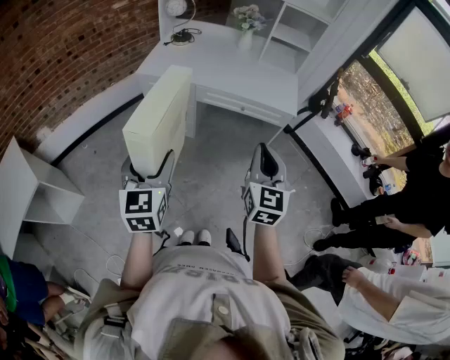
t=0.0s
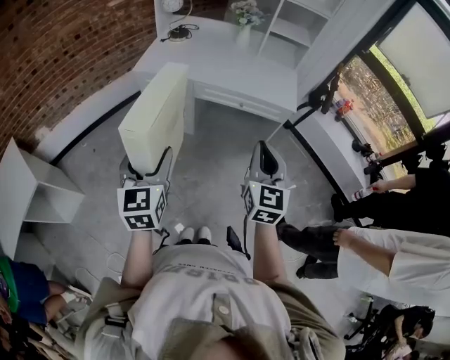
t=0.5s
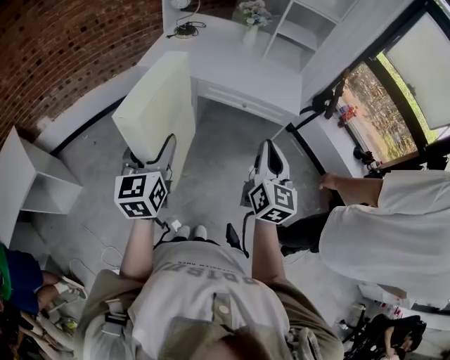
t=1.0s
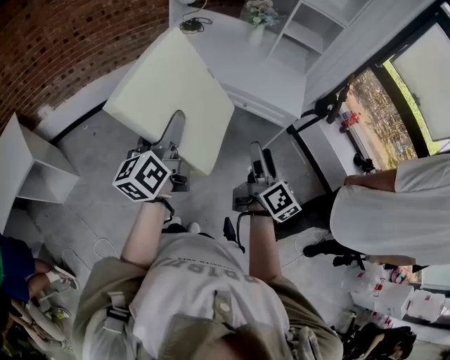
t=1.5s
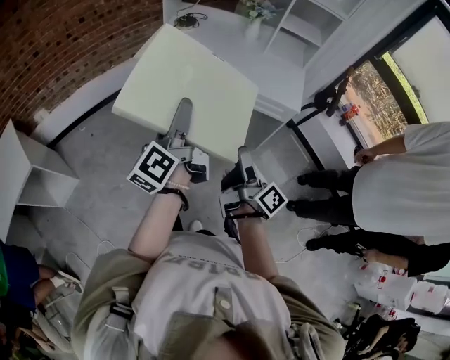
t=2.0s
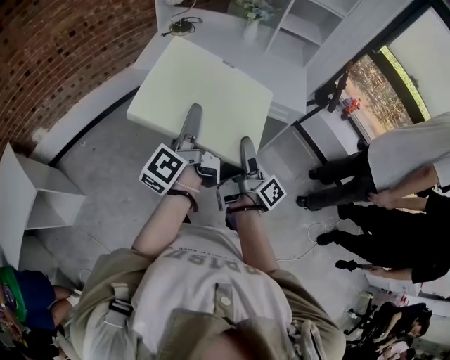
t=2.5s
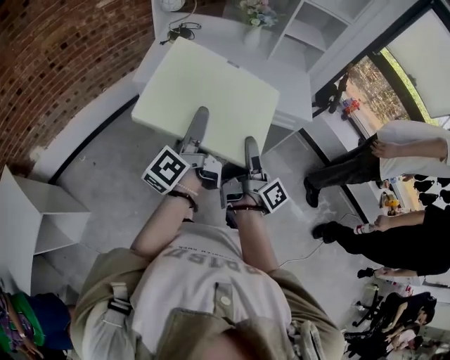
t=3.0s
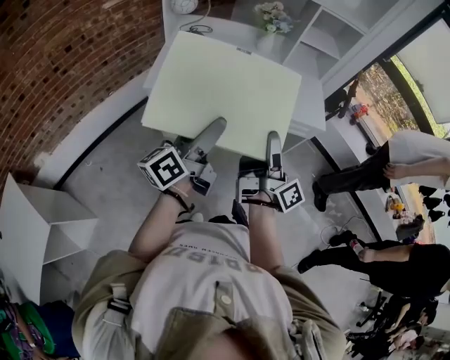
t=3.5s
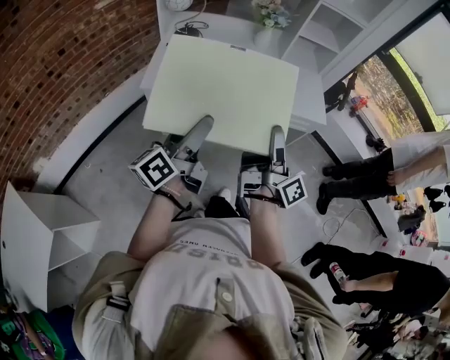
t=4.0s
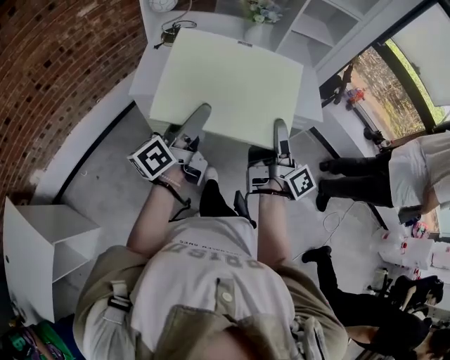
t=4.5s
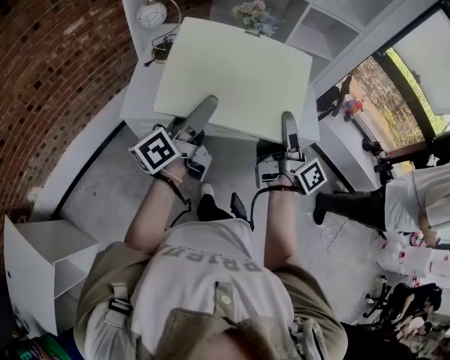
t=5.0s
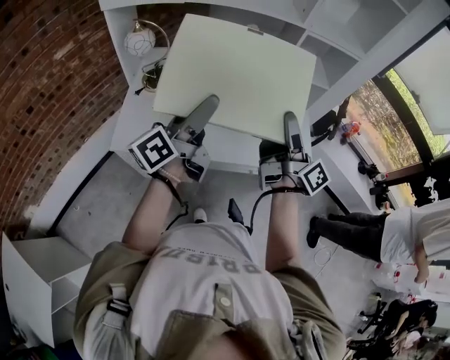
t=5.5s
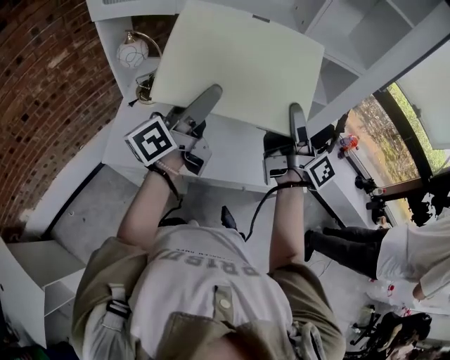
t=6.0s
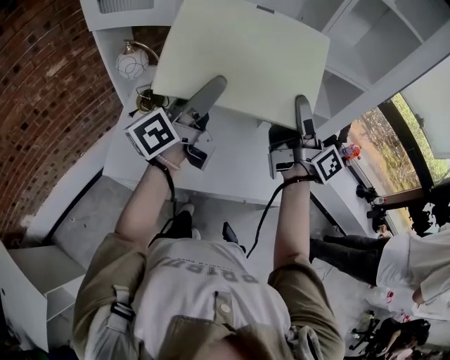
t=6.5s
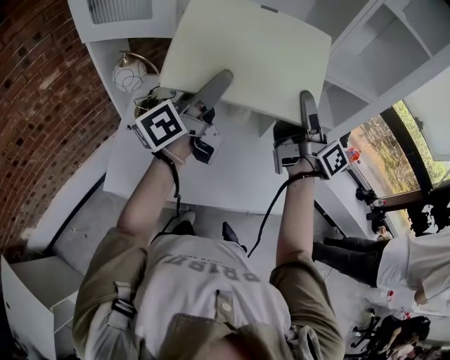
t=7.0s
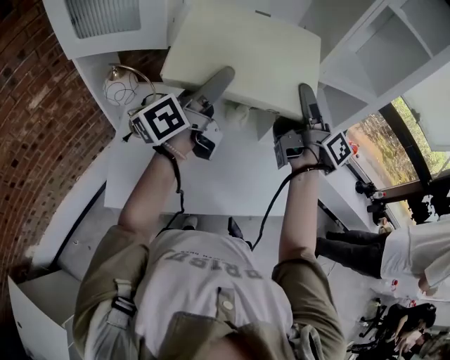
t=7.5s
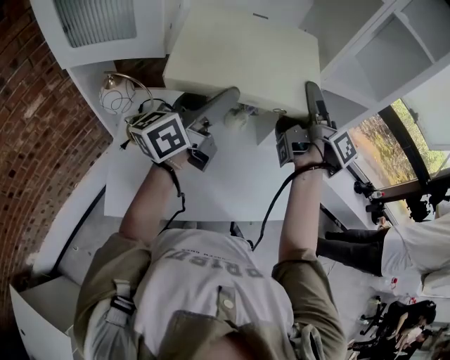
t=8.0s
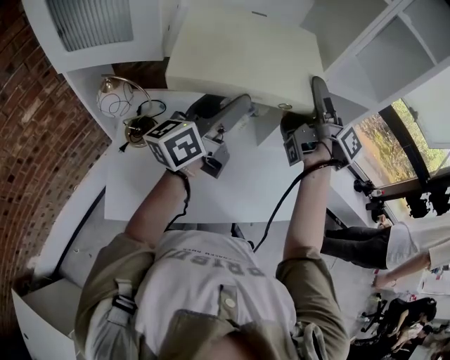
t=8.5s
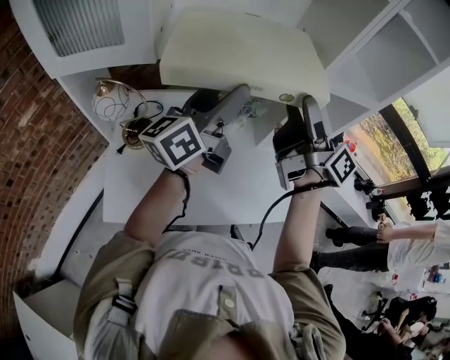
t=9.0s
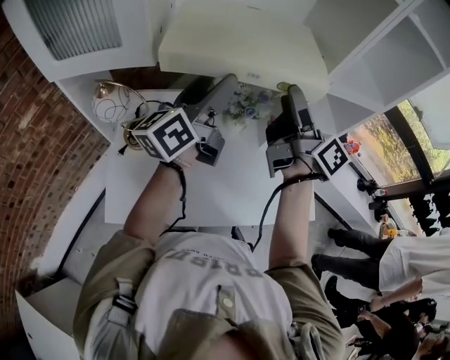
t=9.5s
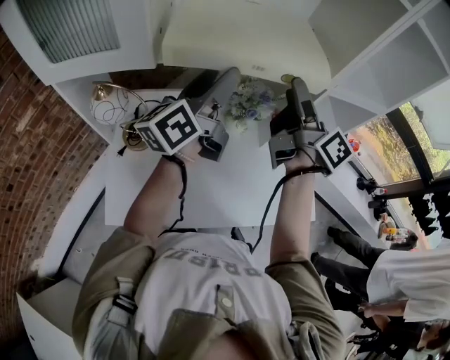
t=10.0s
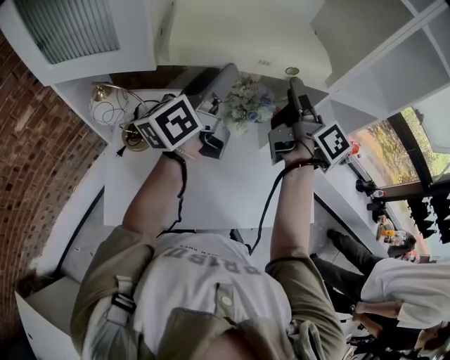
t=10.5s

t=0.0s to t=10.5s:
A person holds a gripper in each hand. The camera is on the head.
t=0.0s to t=2.0s: The left gripper goes approximately 10 cm forward and to the right, and twists roughly 60 degrees counterclockwise, seen from behind, while the right gripper goes approximately 10 cm downward, rotates around the line of its fingers by roughly 80 degrees, clockwise from behind, and opens.
t=2.0s to t=4.0s: The right gripper ends up approximately 25 cm from where it was, turns by roughly 30 degrees, and closes. The left gripper moves roughly 20 cm, and rotates some 30 degrees.
t=4.0s to t=6.5s: The two grippers travel together, forward, some 40 cm.
t=6.5s to t=8.5s: Both grippers travel together forward, approximately 15 cm.
t=8.5s to t=10.5s: The left gripper moves forward, roughly 10 cm, while the right gripper moves approximately 5 cm.

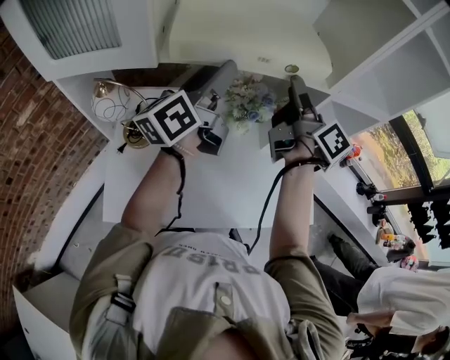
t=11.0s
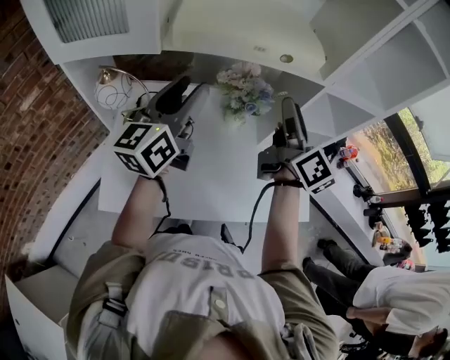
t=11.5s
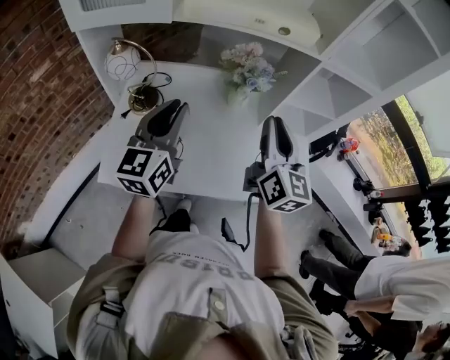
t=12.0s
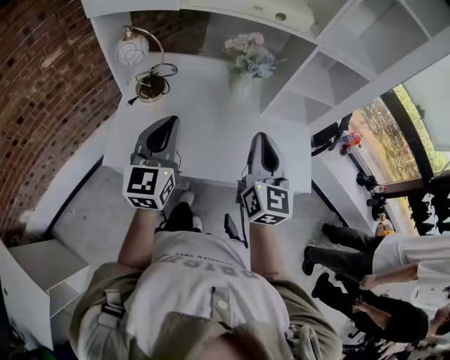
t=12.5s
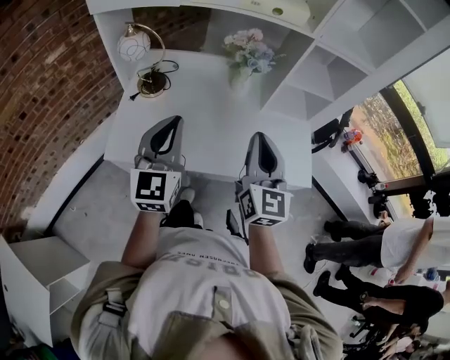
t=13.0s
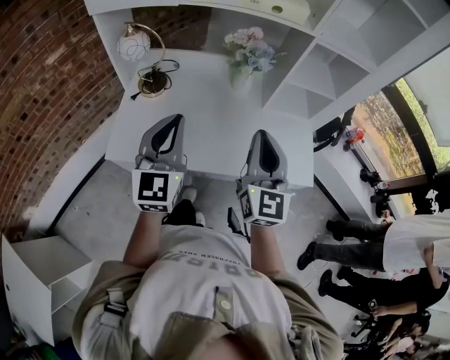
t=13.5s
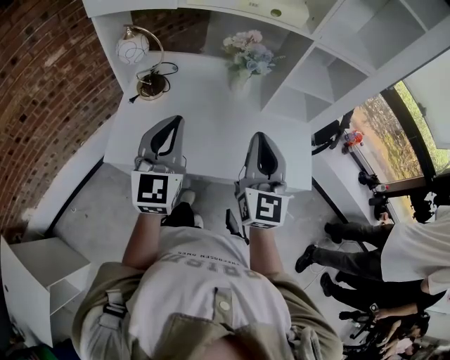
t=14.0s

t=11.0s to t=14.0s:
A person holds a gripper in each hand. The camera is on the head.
t=11.0s to t=12.5s: The grippers both shift backward by some 30 cm. The left gripper twists approximately 50 degrees clockwise, seen from behind, and closes. Meanwhile the right gripper rotates around the line of its fingers by some 60 degrees, counterclockwise from behind, and closes.
t=12.5s to t=14.0s: There are only small adjustments of the grippers.

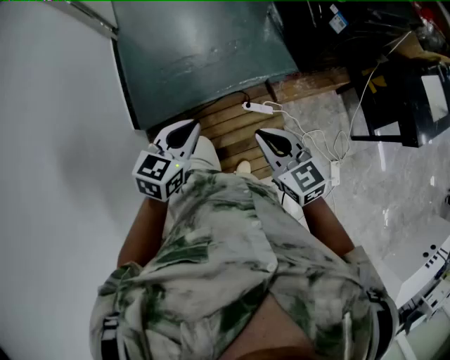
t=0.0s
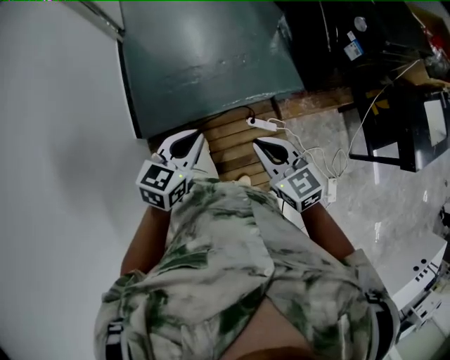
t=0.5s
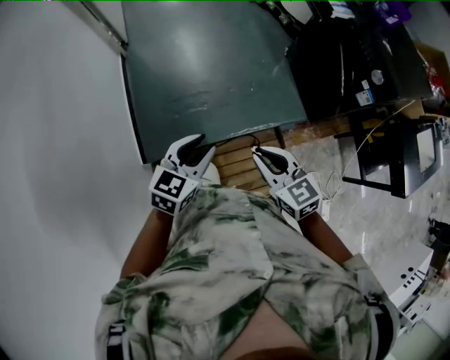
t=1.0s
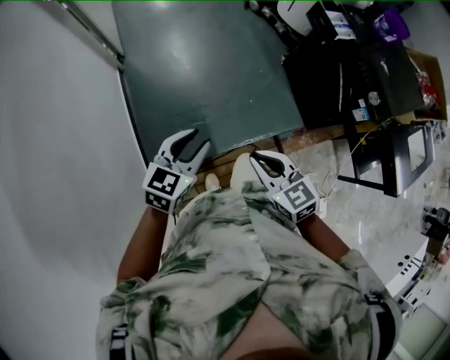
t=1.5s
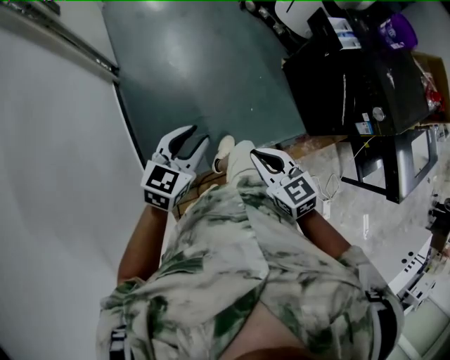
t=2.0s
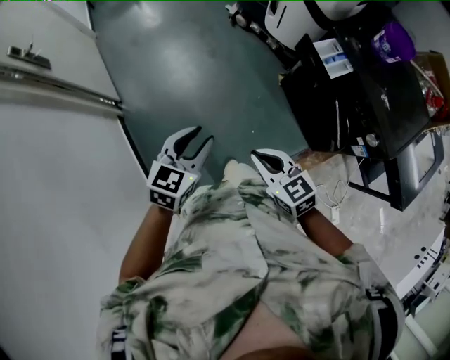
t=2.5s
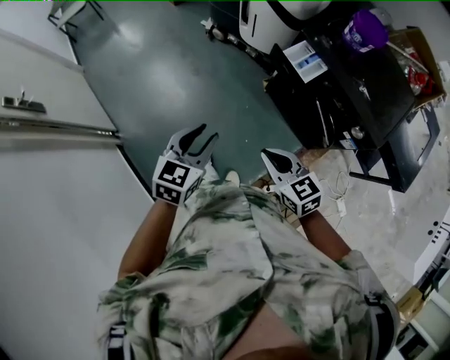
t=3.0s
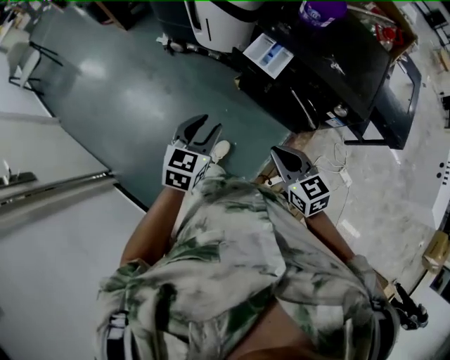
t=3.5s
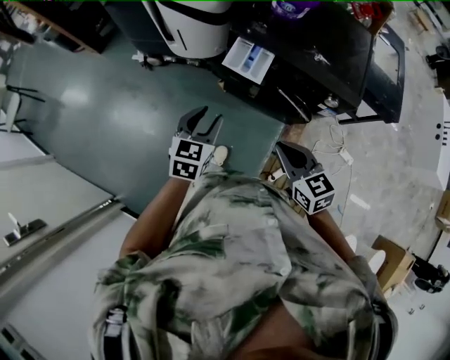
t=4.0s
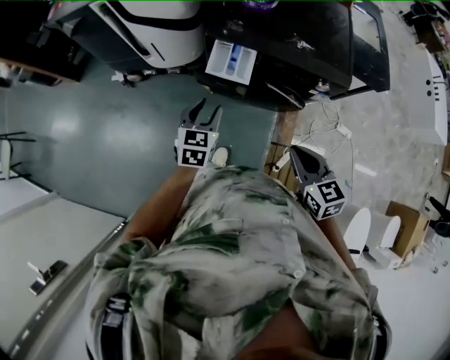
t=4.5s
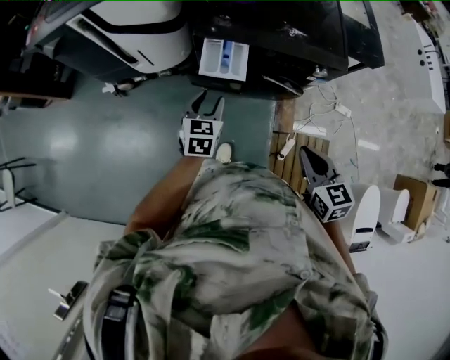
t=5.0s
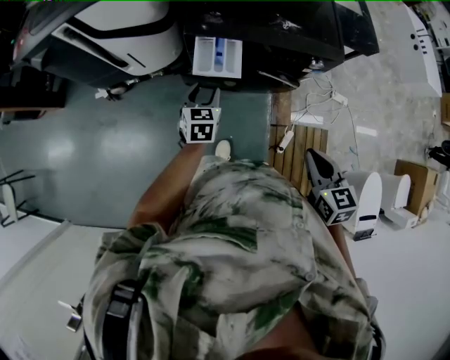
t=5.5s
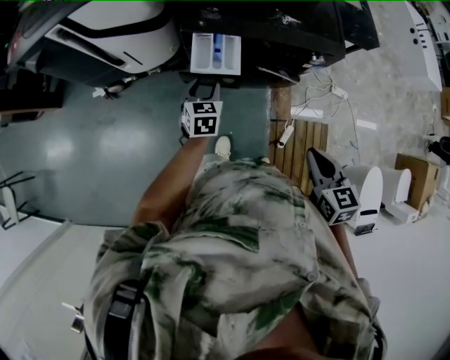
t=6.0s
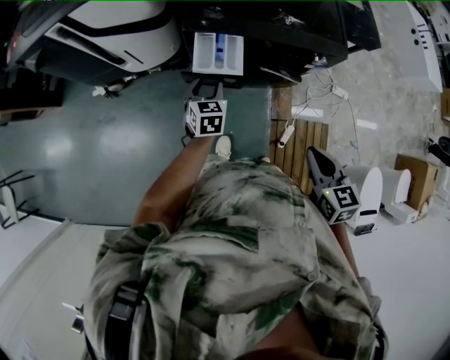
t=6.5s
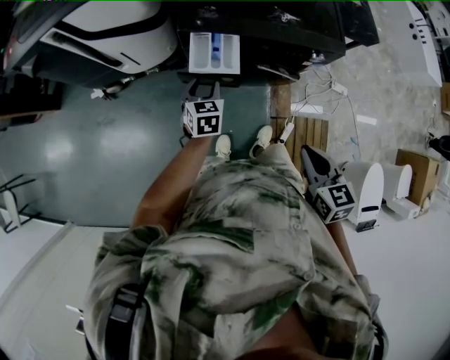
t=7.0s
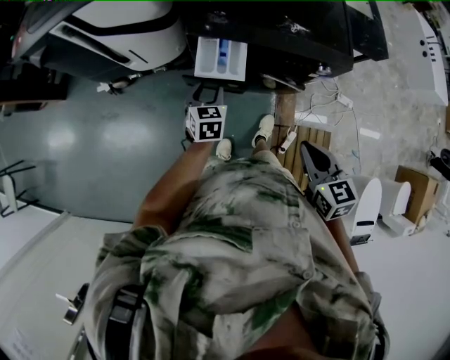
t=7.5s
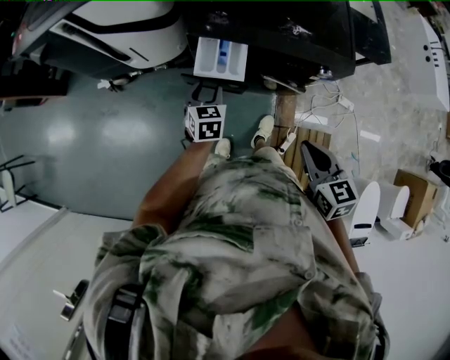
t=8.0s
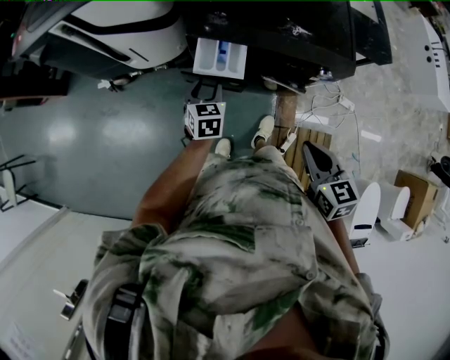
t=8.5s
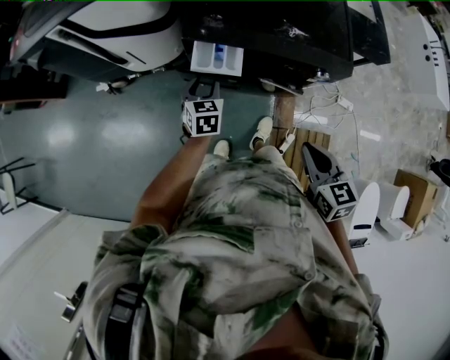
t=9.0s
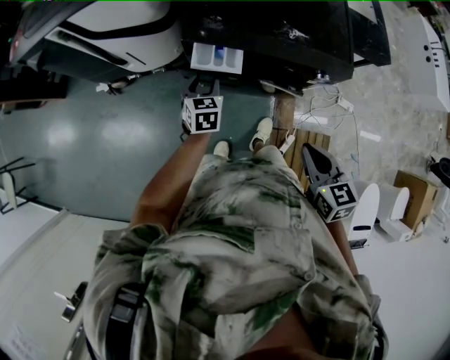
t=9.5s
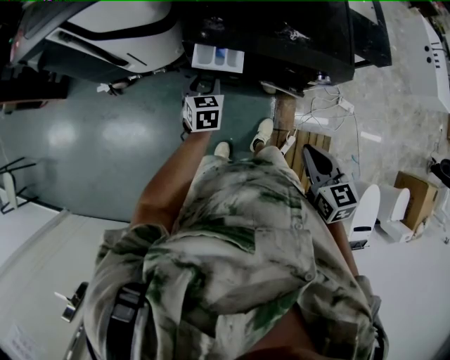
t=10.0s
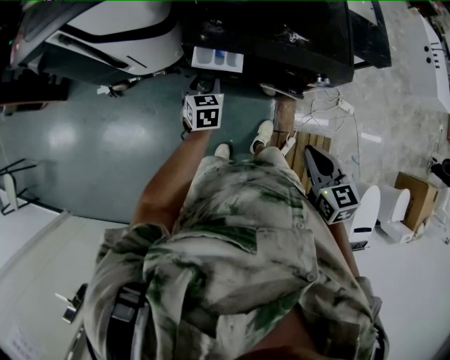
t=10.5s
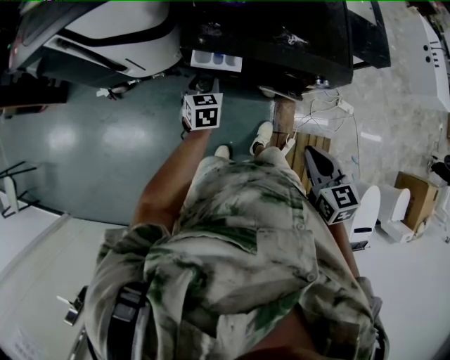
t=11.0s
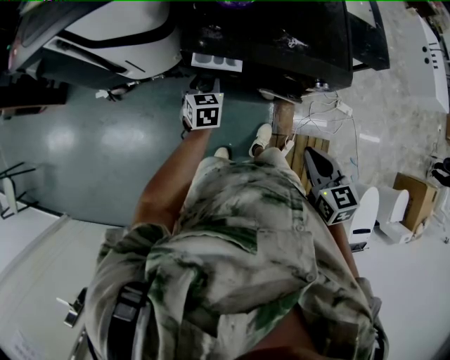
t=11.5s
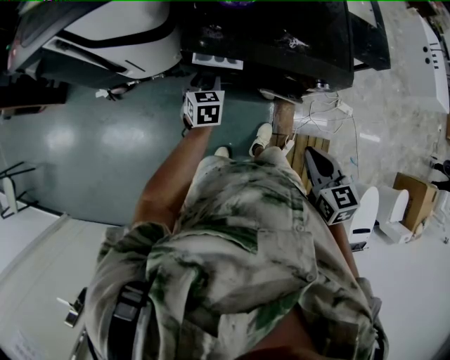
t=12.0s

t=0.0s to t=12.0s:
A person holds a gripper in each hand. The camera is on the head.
t=0.0s to t=2.0s: The pair of grippers is taken forward and to the left, some 50 cm. The left gripper opens up.
t=2.0s to t=4.0s: The two grippers travel together, approximately 50 cm. The right gripper rotates roughly 50 degrees. The left gripper rotates approximately 40 degrees.
t=4.0s to t=6.0s: The left gripper is displaced forward and downward by roughly 20 cm. Meanwhile the right gripper heads to the right, covering some 5 cm, and turns by some 40 degrees.
t=6.0s to t=8.0s: The right gripper heads forward, covering approximately 5 cm.
t=8.0s to t=10.0s: The left gripper travels forward by about 5 cm.
t=10.0s to t=12.0s: The grippers stay close to where they were, moving slightly.

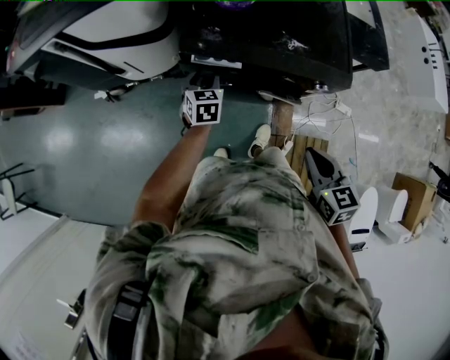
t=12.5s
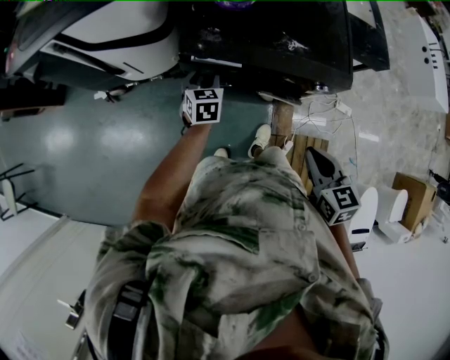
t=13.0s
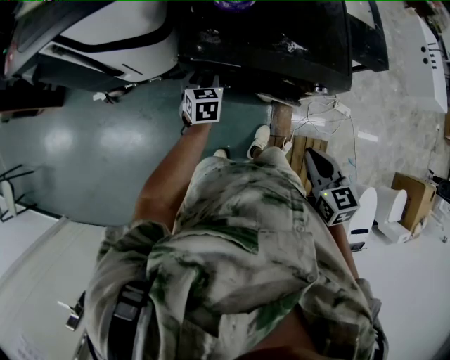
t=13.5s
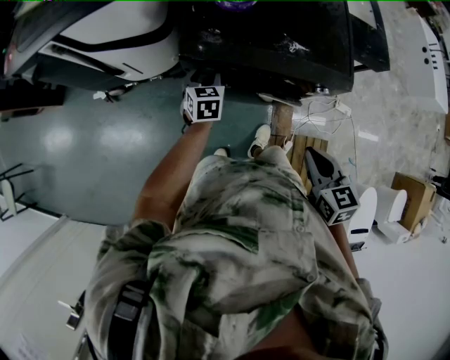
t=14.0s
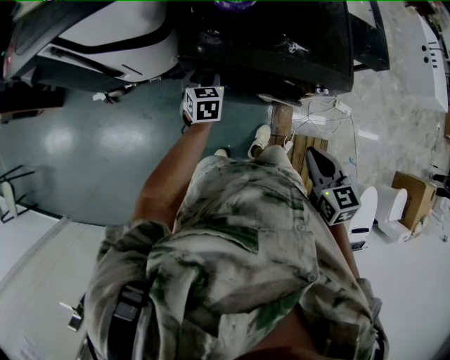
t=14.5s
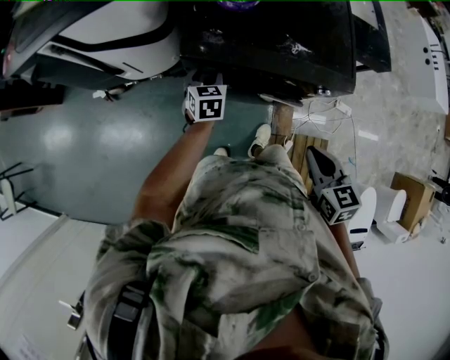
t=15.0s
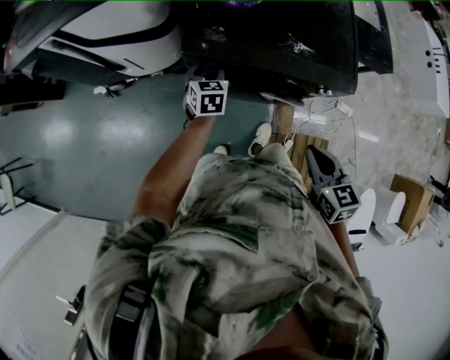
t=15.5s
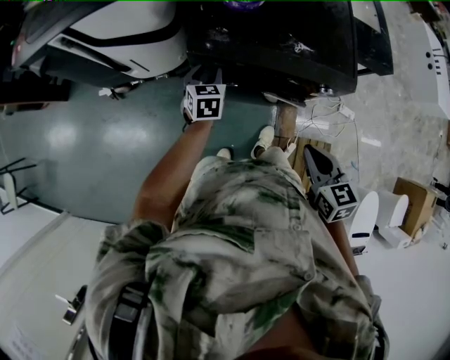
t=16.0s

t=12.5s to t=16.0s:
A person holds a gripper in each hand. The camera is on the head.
t=12.5s to t=16.0s: The grippers make only small movements.
